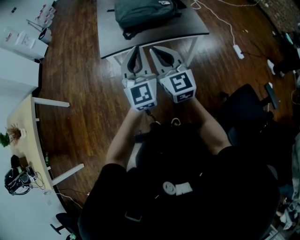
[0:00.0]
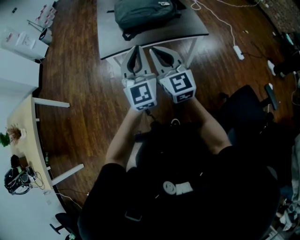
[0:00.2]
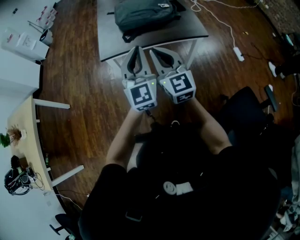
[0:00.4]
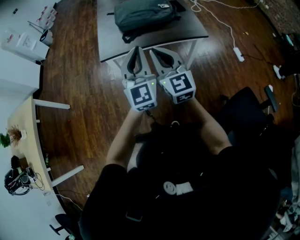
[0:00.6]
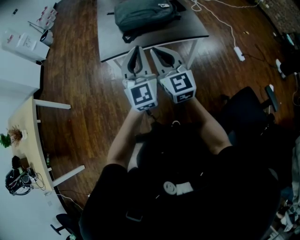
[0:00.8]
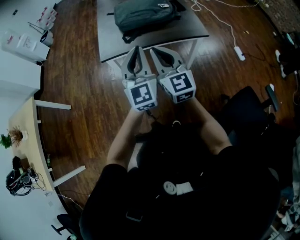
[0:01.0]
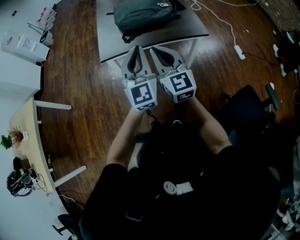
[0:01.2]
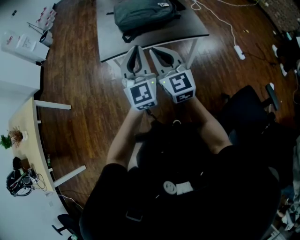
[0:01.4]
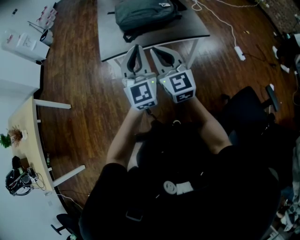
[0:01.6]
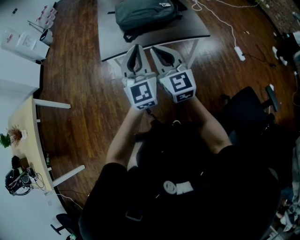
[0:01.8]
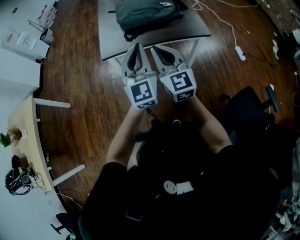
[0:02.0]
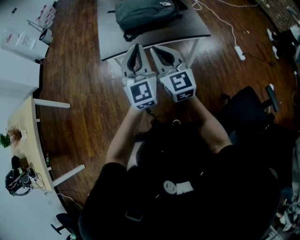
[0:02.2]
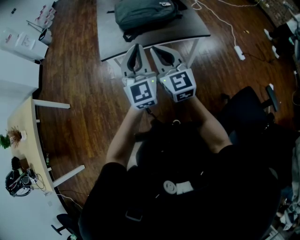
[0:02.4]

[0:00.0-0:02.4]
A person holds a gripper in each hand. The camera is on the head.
0:00.0 to 0:02.4: The grippers stay close to where they were, moving slightly.

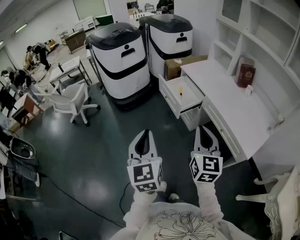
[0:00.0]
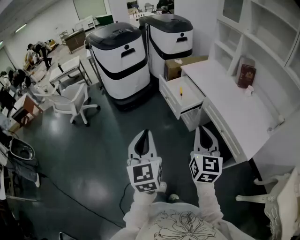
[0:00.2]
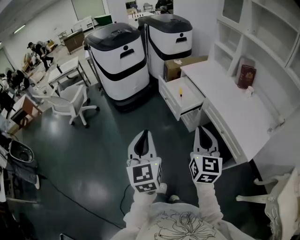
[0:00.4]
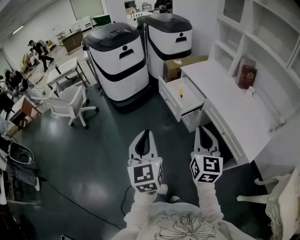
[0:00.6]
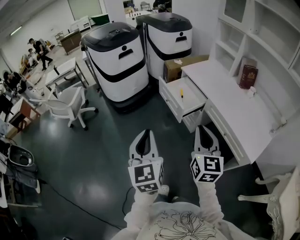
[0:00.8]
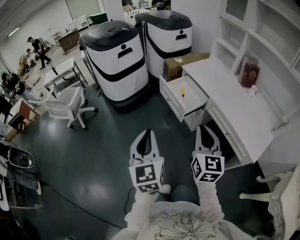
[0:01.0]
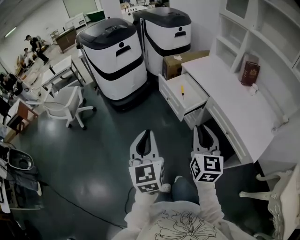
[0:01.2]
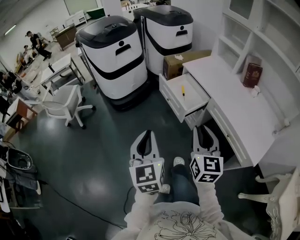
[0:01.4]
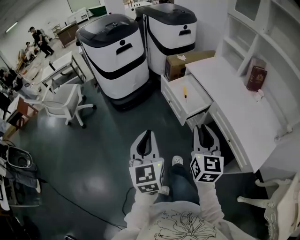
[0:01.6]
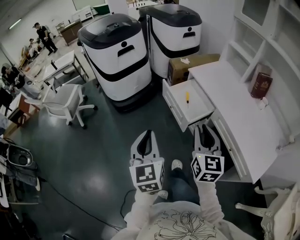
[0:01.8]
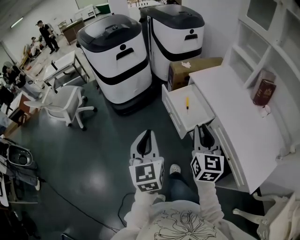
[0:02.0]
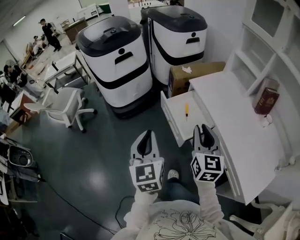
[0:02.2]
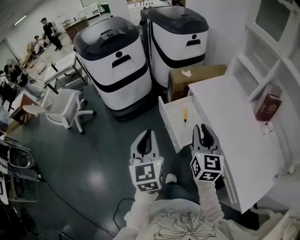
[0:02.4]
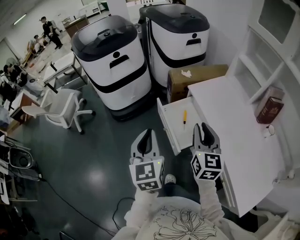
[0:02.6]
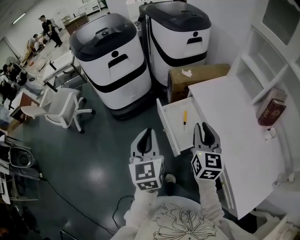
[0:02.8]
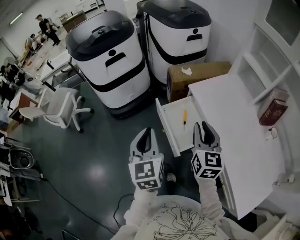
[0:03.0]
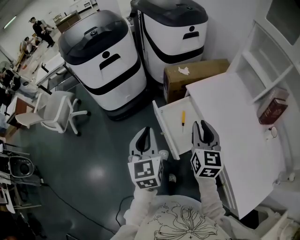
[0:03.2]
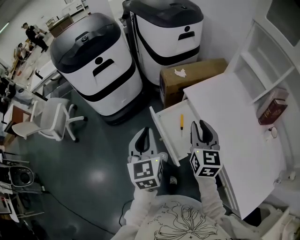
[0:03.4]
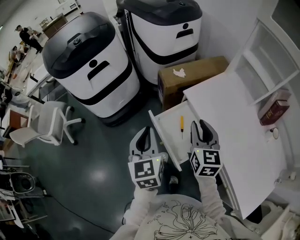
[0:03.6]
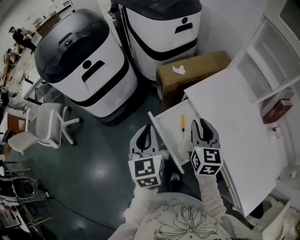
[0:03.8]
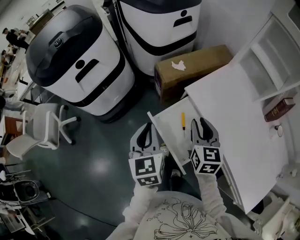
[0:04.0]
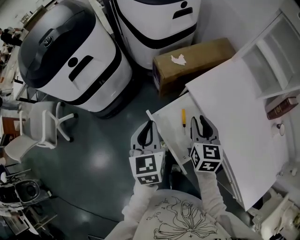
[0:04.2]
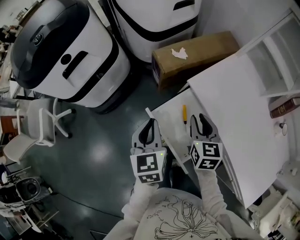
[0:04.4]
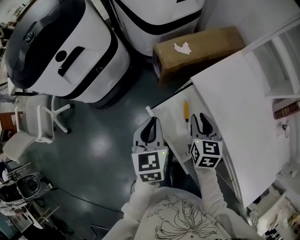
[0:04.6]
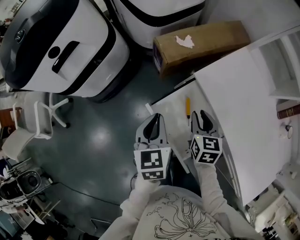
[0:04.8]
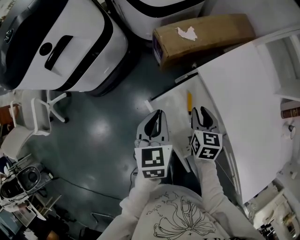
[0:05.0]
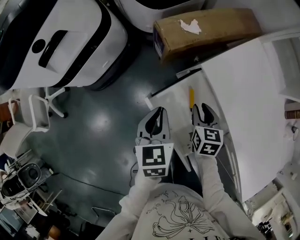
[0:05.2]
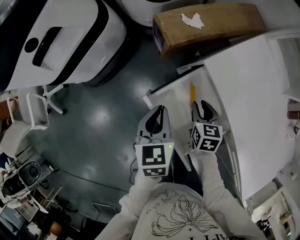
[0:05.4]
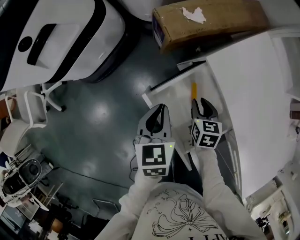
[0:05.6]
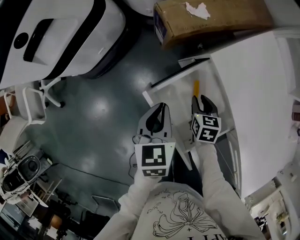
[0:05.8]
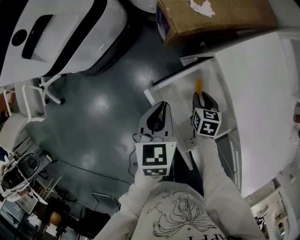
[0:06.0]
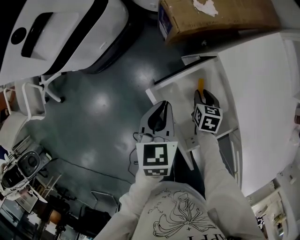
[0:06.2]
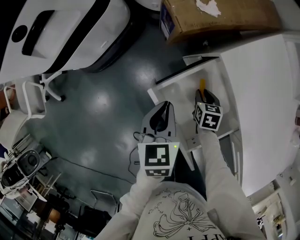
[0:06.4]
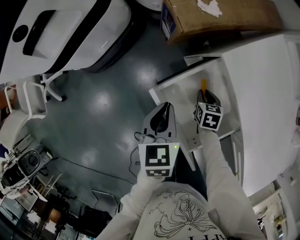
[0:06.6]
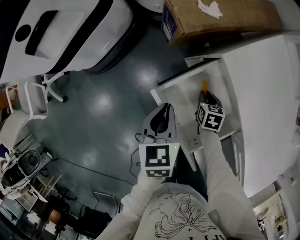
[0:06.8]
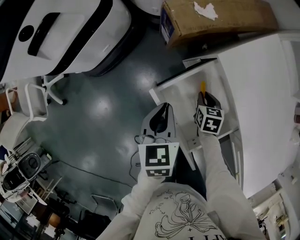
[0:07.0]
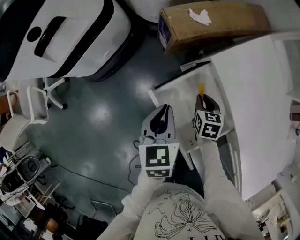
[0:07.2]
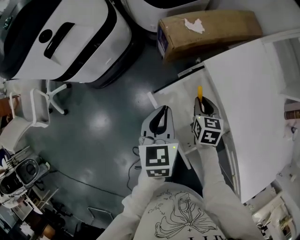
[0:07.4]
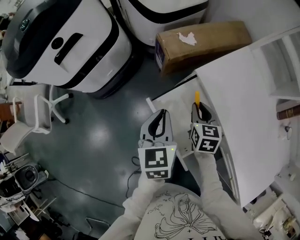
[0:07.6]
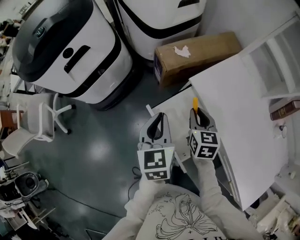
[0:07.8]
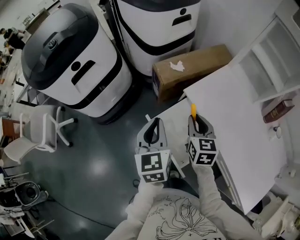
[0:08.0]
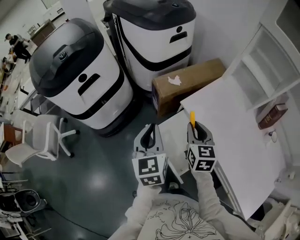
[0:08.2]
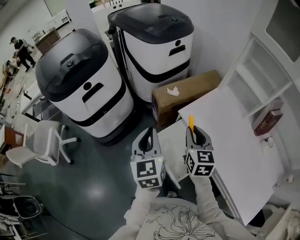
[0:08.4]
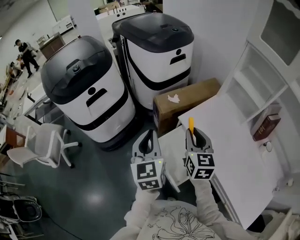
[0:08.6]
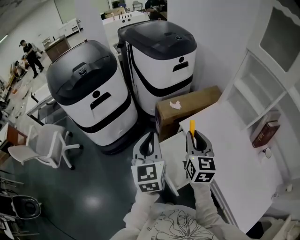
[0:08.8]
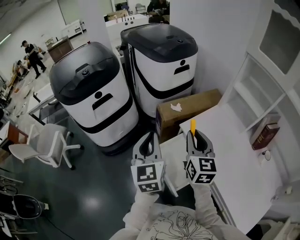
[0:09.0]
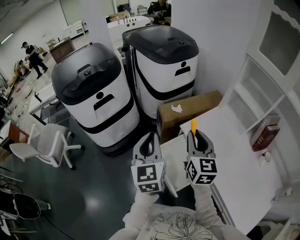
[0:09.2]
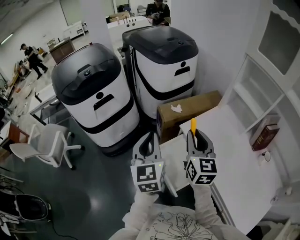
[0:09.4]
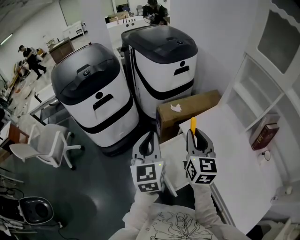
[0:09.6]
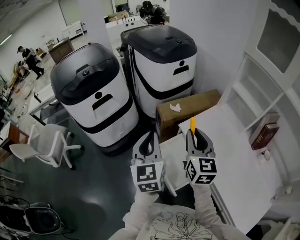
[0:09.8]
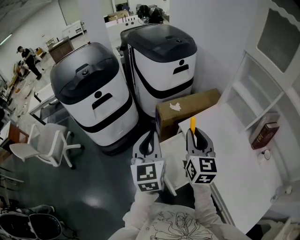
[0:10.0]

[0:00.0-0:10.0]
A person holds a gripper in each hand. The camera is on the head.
0:00.0 to 0:01.4: Both grippers move forward, some 10 cm.
0:01.4 to 0:02.8: The two grippers go about 35 cm forward.
0:02.8 to 0:04.2: The two grippers go roughly 25 cm forward and downward. The left gripper rotates some 20 degrees.
0:04.2 to 0:05.8: The left gripper goes approximately 20 cm downward; the right gripper shifts some 30 cm downward, and changes its angle by some 30 degrees.
0:05.8 to 0:07.2: The right gripper goes downward and returns, approximately 5 cm each way.
0:07.2 to 0:08.6: Both grippers travel together upward, approximately 35 cm. The left gripper points its fingers roughly 30 degrees further upward, while the right gripper tips its fingers upward by about 40 degrees.
0:08.6 to 0:10.0: The right gripper moves upward, approximately 5 cm.

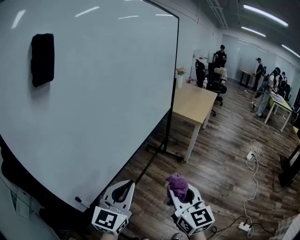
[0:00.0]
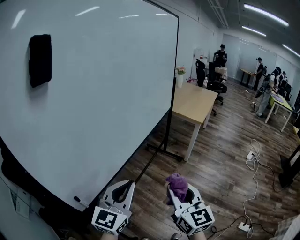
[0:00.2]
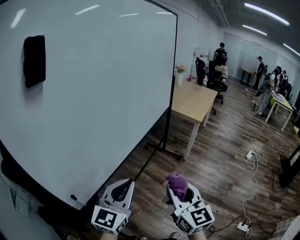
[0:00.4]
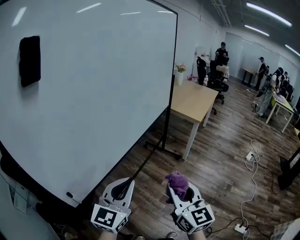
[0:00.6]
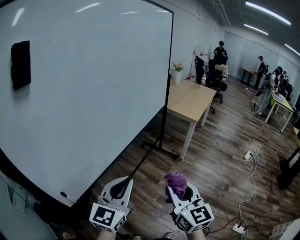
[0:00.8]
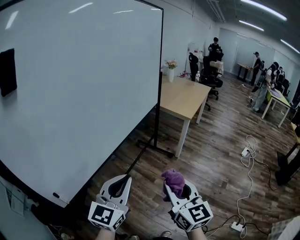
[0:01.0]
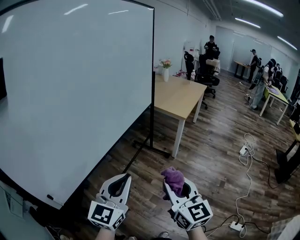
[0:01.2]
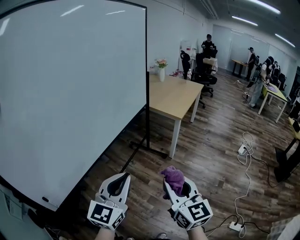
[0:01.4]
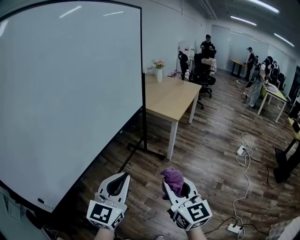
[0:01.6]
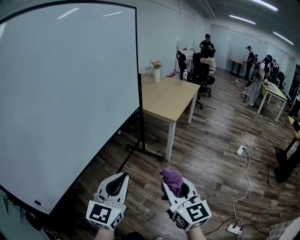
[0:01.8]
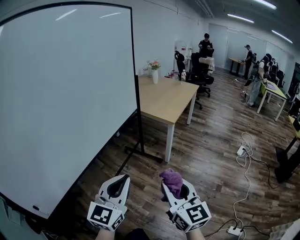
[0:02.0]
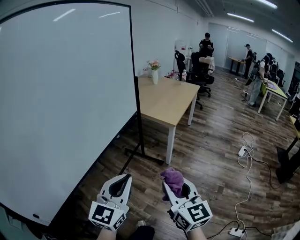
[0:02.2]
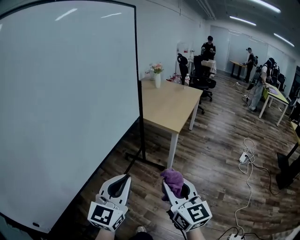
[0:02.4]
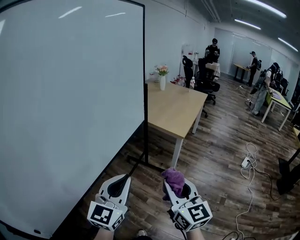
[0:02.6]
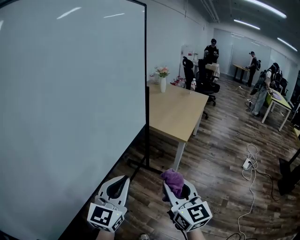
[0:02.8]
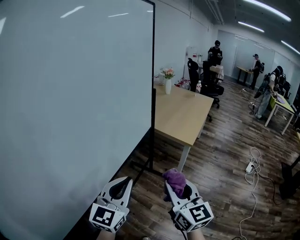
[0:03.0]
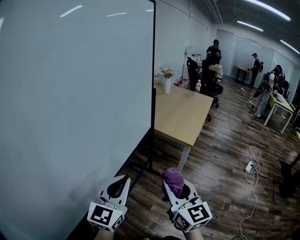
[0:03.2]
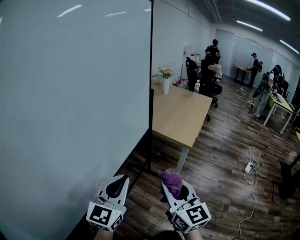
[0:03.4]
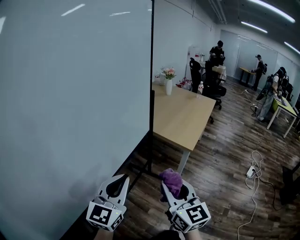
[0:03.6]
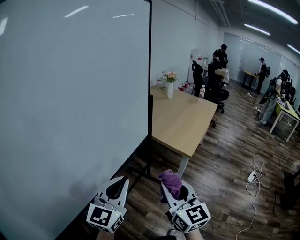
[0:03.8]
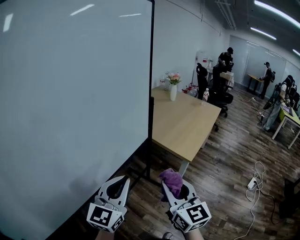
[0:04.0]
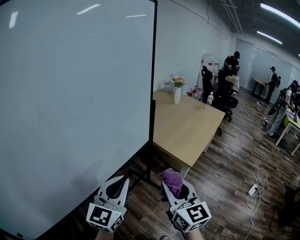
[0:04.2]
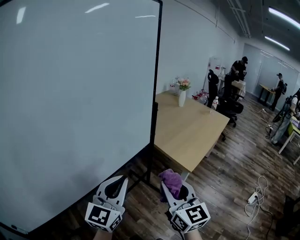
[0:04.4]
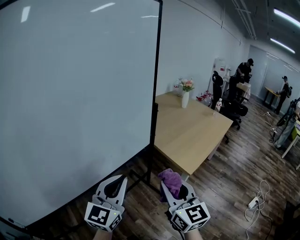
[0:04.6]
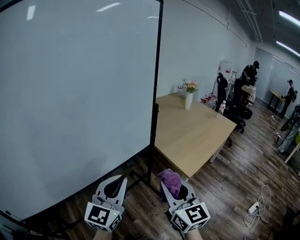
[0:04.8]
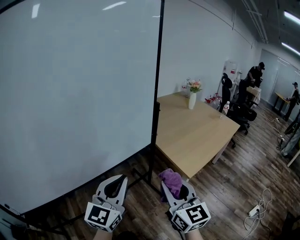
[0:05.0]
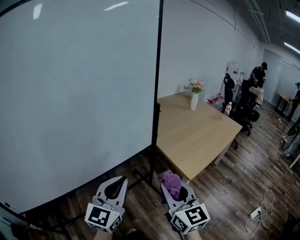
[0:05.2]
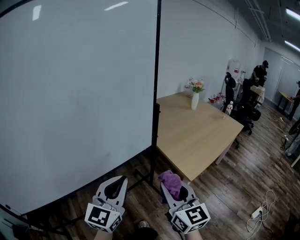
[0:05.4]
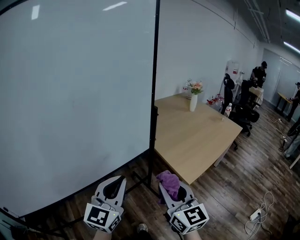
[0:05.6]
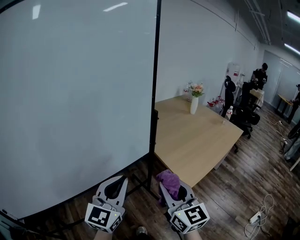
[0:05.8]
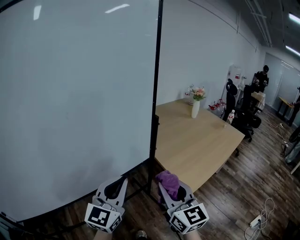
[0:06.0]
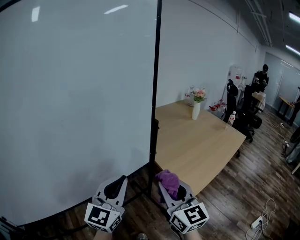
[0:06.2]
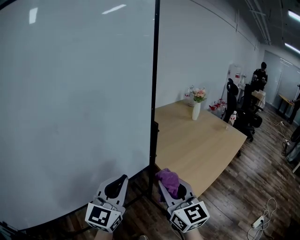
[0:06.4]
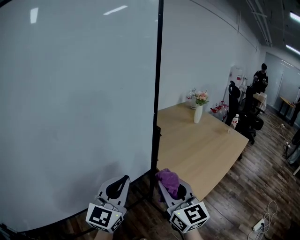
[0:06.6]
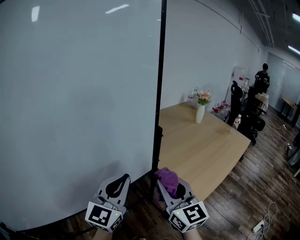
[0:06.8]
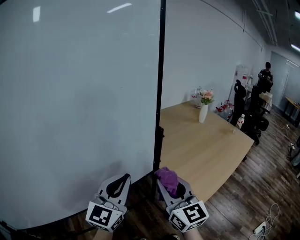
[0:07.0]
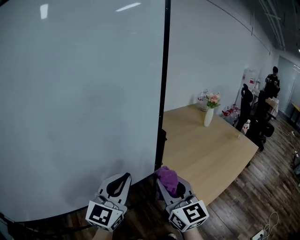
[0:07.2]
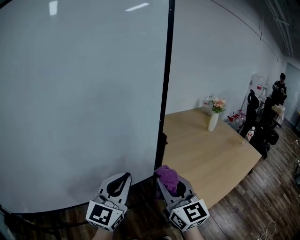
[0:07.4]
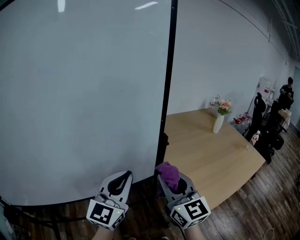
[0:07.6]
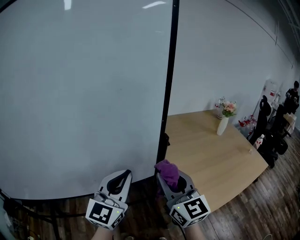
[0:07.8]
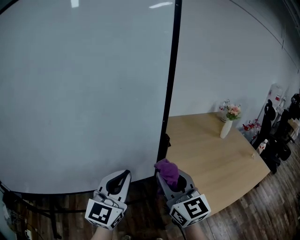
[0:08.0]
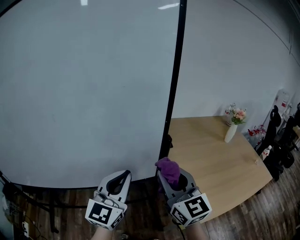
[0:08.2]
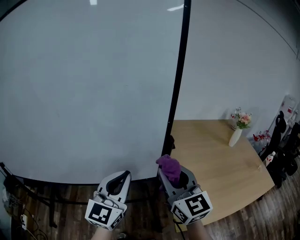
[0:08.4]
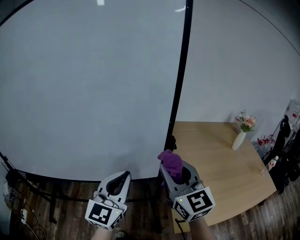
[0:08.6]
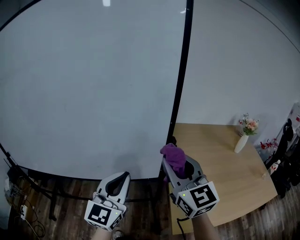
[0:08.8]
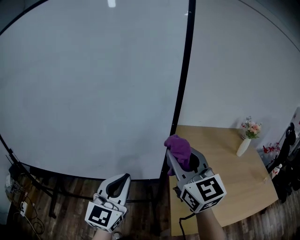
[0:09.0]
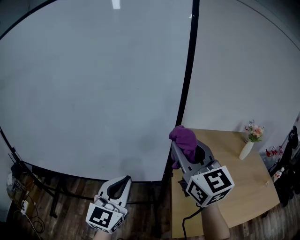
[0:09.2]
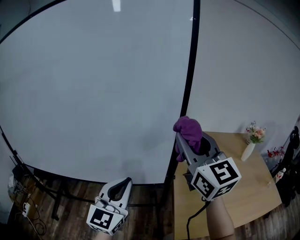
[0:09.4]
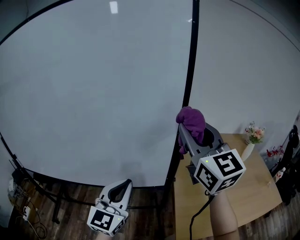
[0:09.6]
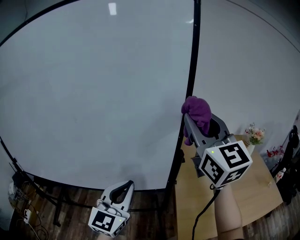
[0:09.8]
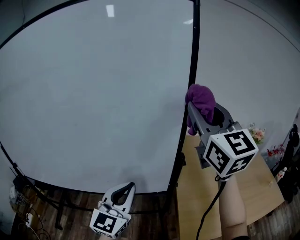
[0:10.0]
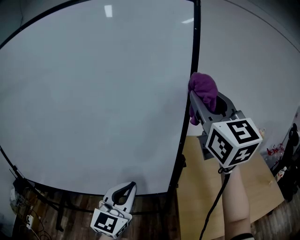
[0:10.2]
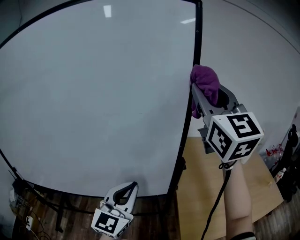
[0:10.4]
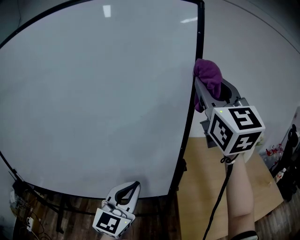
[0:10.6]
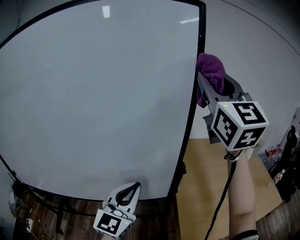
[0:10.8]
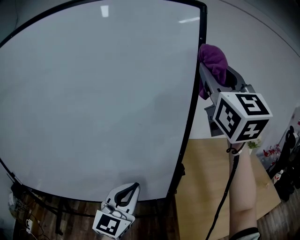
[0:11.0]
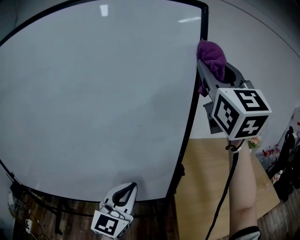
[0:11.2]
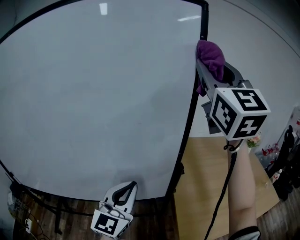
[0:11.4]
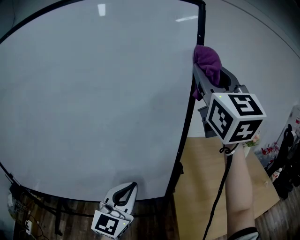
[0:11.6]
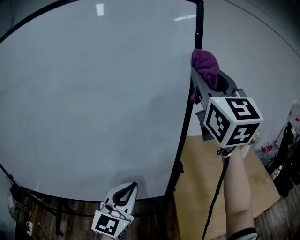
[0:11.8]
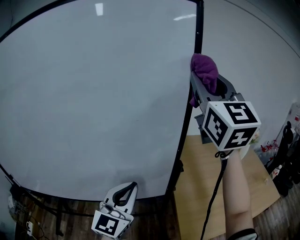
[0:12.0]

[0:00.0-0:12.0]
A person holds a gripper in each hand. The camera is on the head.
0:00.0 to 0:01.6: The two grippers go approximately 20 cm to the right.
0:01.6 to 0:03.0: Both grippers move forward, about 25 cm.
0:03.0 to 0:04.4: The grippers both shift forward and to the right by roughly 15 cm.
0:04.4 to 0:06.0: Both grippers move forward and to the right, some 10 cm.
0:06.0 to 0:07.6: The two grippers go roughly 15 cm forward.
0:07.6 to 0:09.0: The right gripper is displaced upward by about 10 cm, and swivels approximately 20 degrees. Meanwhile the left gripper rotates roughly 20 degrees.
0:09.0 to 0:10.4: The left gripper moves roughly 5 cm, while the right gripper heads upward, covering about 25 cm, and turns by roughly 20 degrees.
